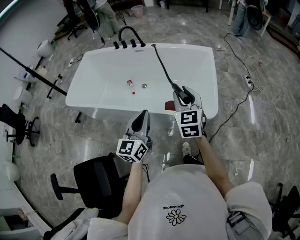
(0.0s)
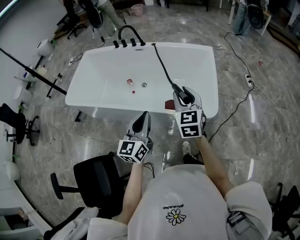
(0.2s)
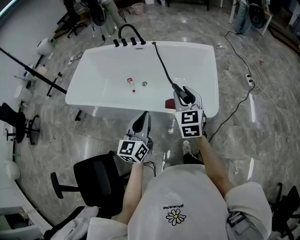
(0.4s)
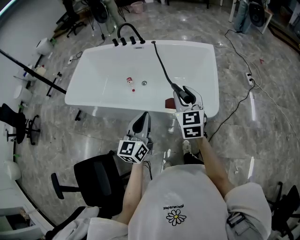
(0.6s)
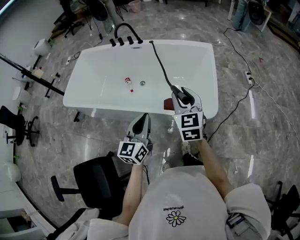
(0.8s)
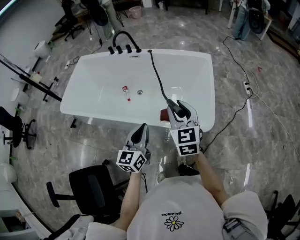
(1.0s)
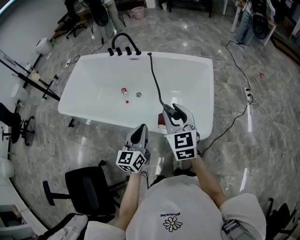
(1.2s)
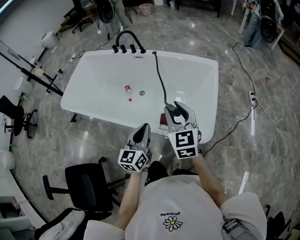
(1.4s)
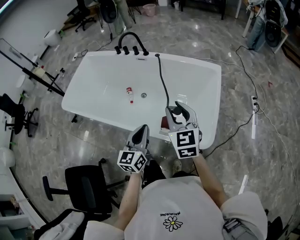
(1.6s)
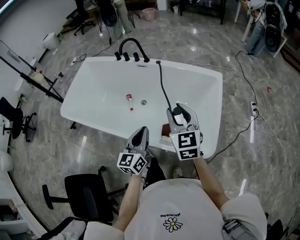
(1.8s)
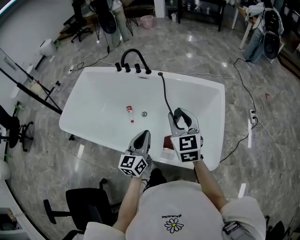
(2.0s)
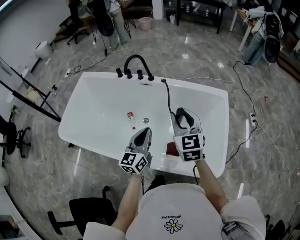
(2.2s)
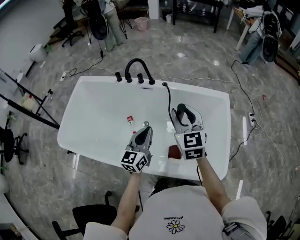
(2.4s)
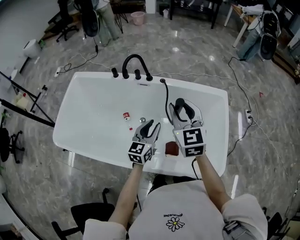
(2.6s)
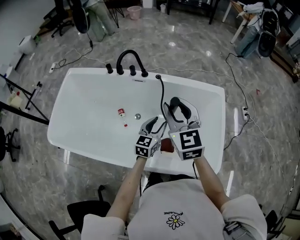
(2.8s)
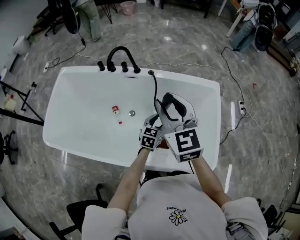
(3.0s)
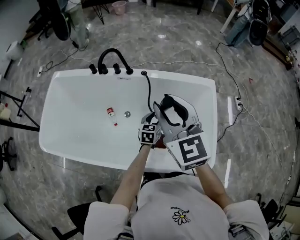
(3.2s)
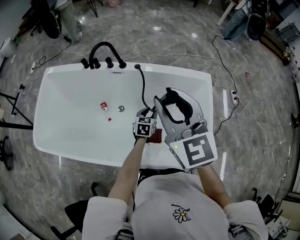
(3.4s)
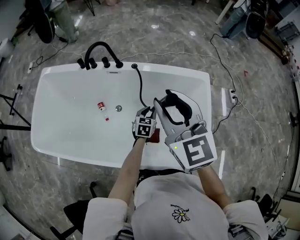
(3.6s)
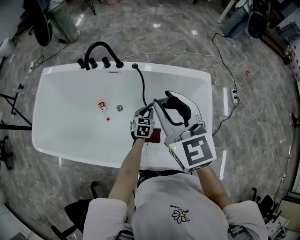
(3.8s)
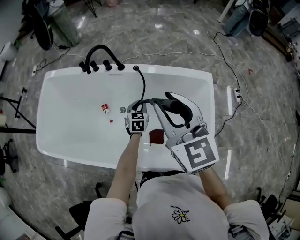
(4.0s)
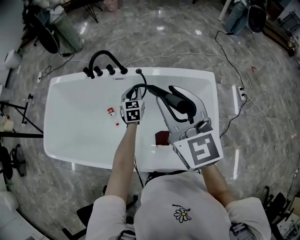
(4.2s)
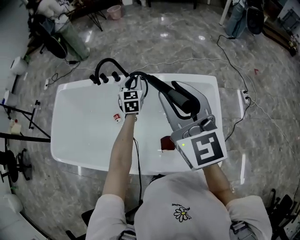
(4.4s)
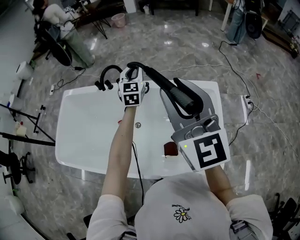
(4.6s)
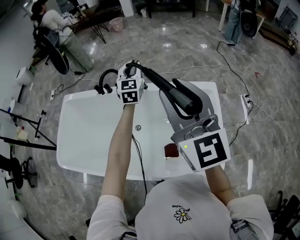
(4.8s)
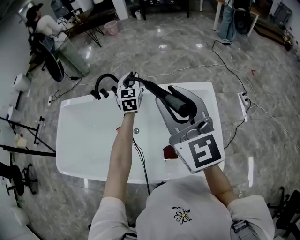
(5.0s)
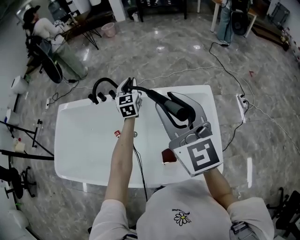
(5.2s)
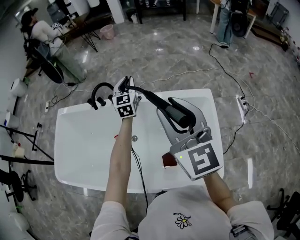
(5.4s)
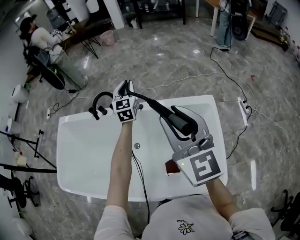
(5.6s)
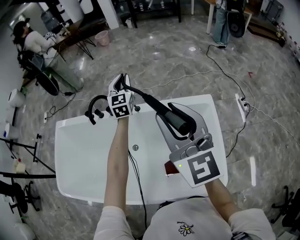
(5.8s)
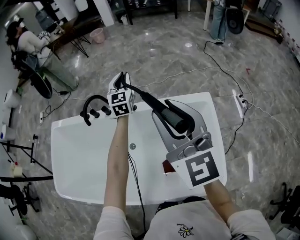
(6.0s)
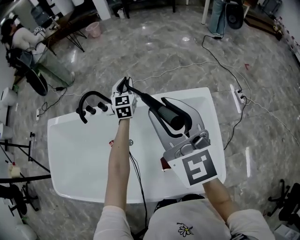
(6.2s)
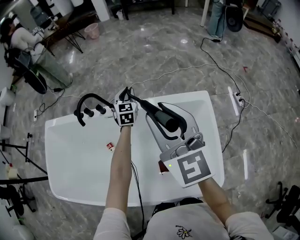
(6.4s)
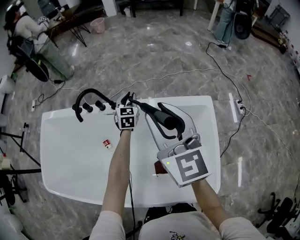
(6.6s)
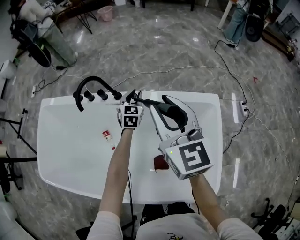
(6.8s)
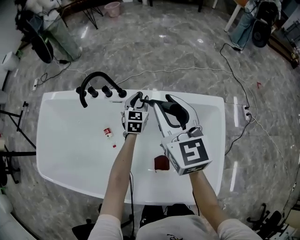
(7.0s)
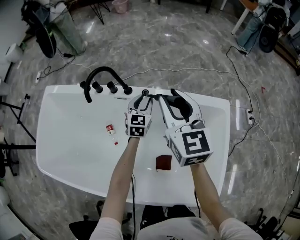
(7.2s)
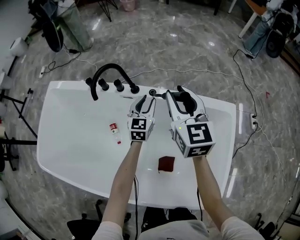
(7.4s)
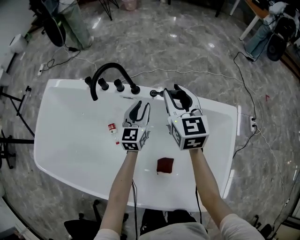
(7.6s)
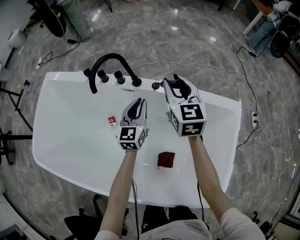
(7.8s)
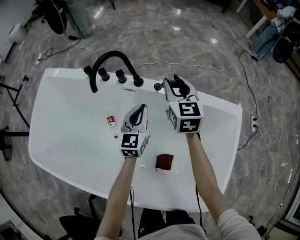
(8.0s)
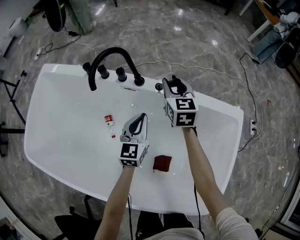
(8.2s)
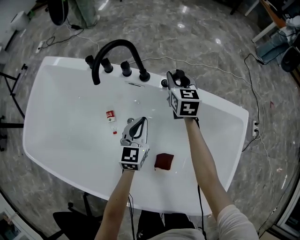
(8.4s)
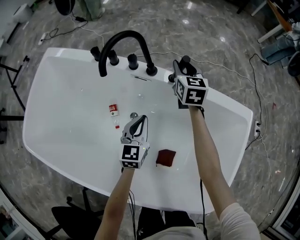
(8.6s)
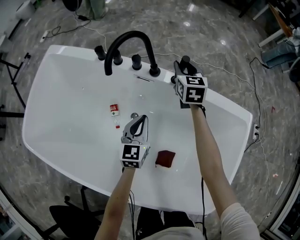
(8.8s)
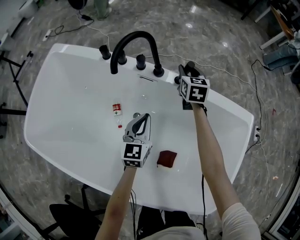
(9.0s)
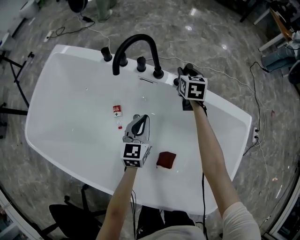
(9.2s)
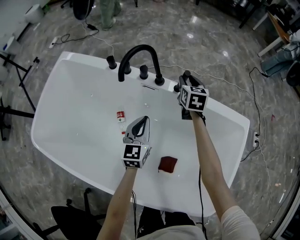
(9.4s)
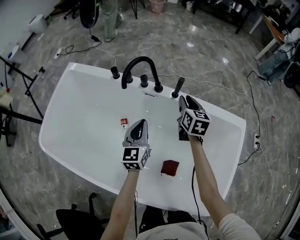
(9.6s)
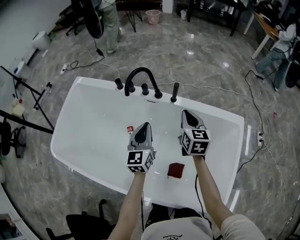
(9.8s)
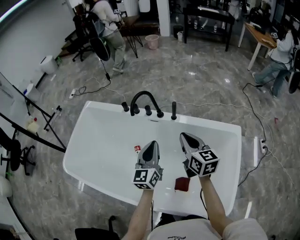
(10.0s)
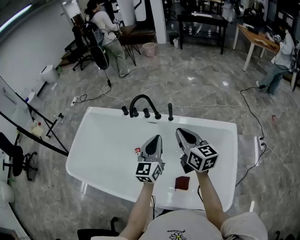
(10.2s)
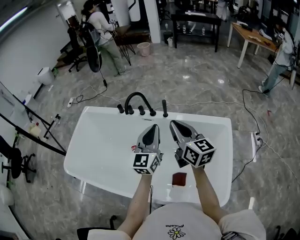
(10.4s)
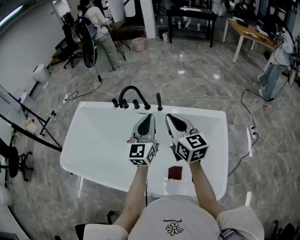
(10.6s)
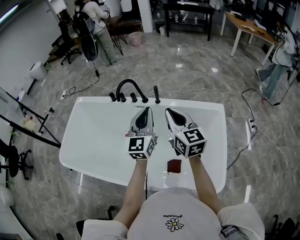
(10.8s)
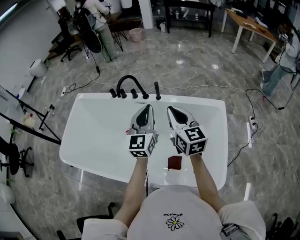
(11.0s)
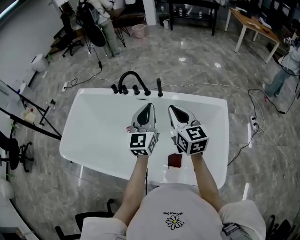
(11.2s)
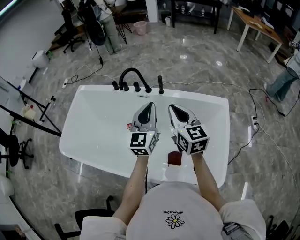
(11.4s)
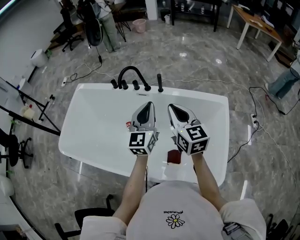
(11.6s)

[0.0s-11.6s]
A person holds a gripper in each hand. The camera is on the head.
0.0s to 1.4s: The right gripper shifts some 10 cm forward. Meanwhile the left gripper moves forward, to the right and downward, roughly 15 cm.
1.4s to 2.8s: The left gripper heads forward, covering approximately 35 cm, swivels some 20 degrees, and opens up, while the right gripper shifts approximately 35 cm forward and to the left.
2.8s to 4.4s: The left gripper goes roughly 25 cm forward, rotates about 30 degrees, and closes. Meanwhile the right gripper is displaced upward and to the right by about 15 cm.
4.4s to 5.8s: The left gripper moves forward and upward, roughly 20 cm, while the right gripper is displaced forward by approximately 5 cm.
5.8s to 7.2s: The right gripper shifts about 25 cm downward and forward. The left gripper is displaced downward by approximately 25 cm.
7.2s to 8.8s: The left gripper shifts roughly 20 cm to the left, backward and downward, and closes; the right gripper travels downward and forward by approximately 30 cm.
8.8s to 10.2s: The left gripper is displaced upward and backward by approximately 35 cm, and rotates approximately 20 degrees. Meanwhile the right gripper travels backward and upward by roughly 50 cm, swivels some 30 degrees, and closes up.

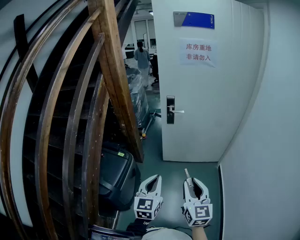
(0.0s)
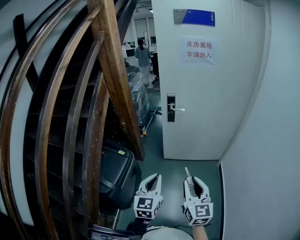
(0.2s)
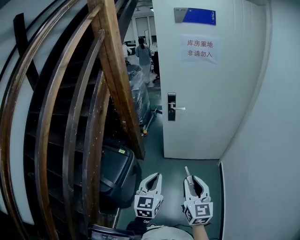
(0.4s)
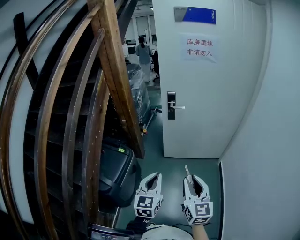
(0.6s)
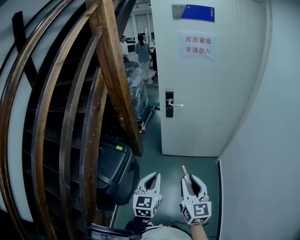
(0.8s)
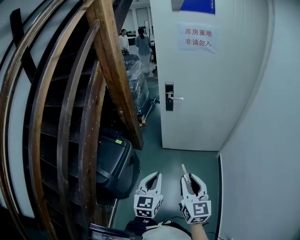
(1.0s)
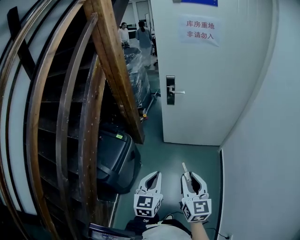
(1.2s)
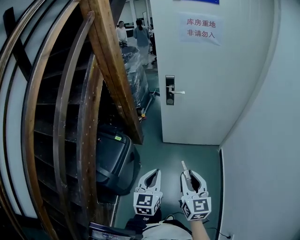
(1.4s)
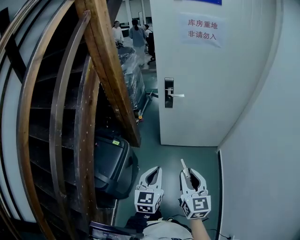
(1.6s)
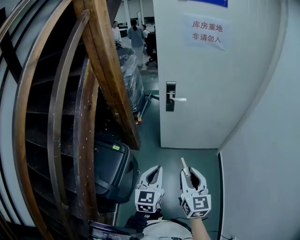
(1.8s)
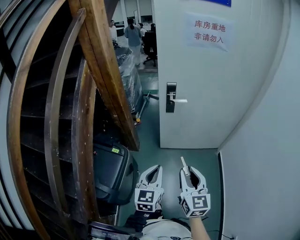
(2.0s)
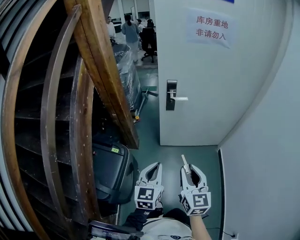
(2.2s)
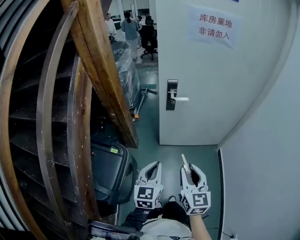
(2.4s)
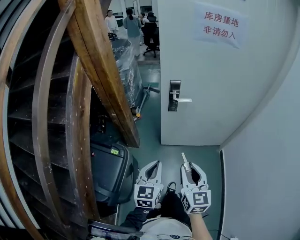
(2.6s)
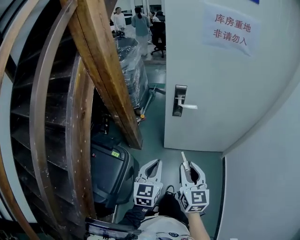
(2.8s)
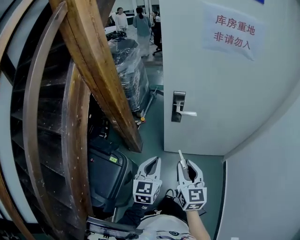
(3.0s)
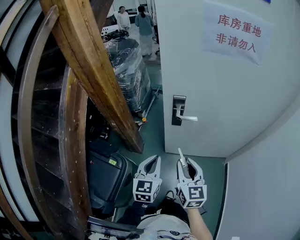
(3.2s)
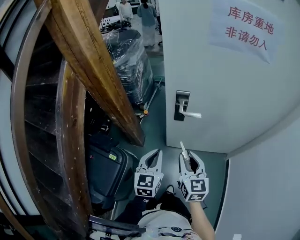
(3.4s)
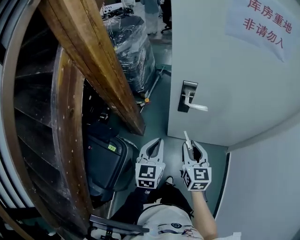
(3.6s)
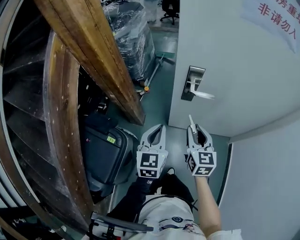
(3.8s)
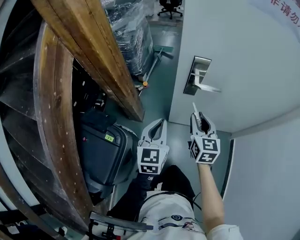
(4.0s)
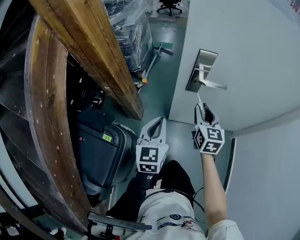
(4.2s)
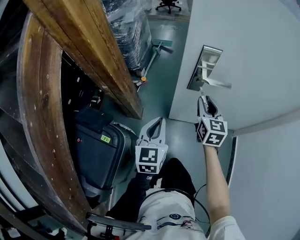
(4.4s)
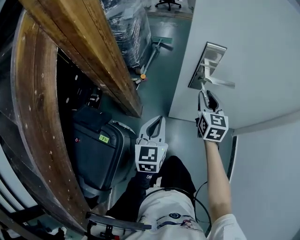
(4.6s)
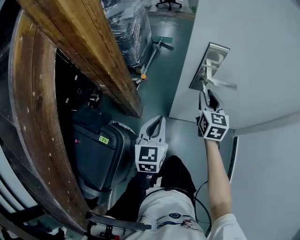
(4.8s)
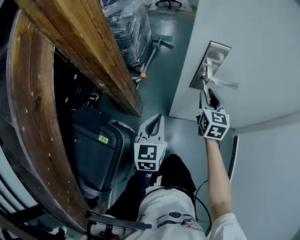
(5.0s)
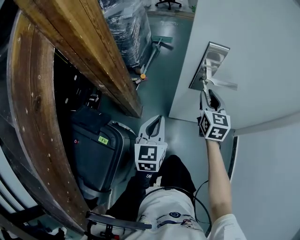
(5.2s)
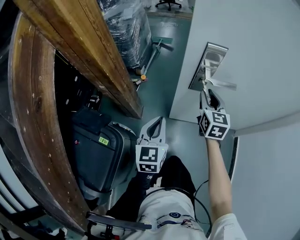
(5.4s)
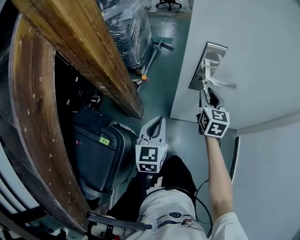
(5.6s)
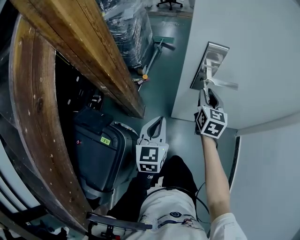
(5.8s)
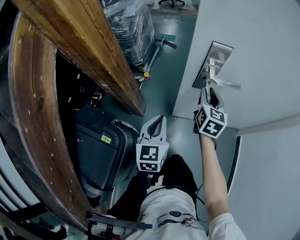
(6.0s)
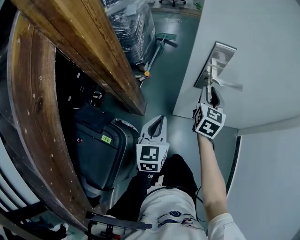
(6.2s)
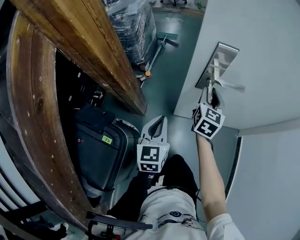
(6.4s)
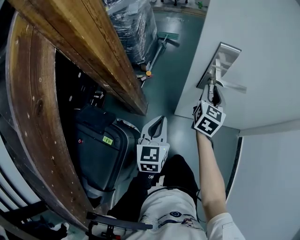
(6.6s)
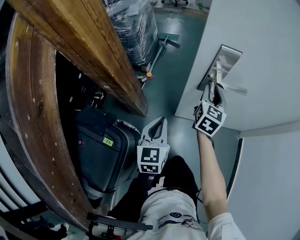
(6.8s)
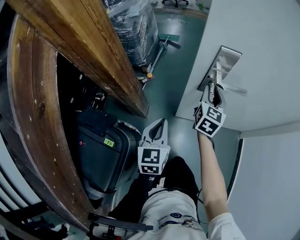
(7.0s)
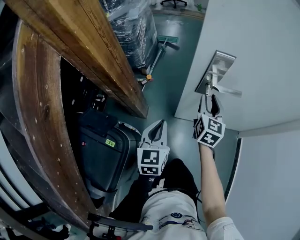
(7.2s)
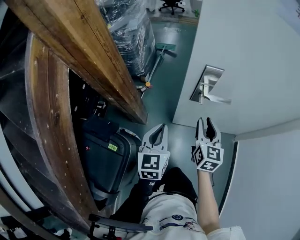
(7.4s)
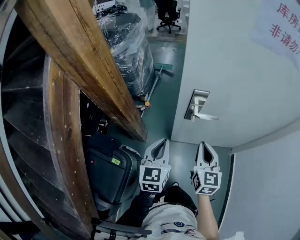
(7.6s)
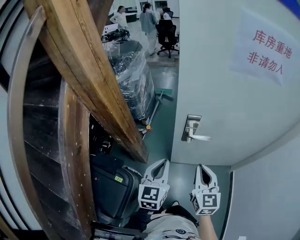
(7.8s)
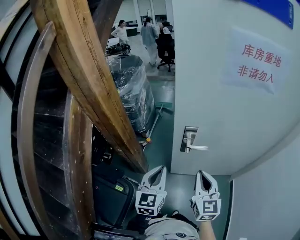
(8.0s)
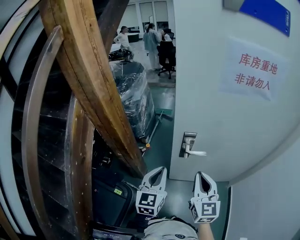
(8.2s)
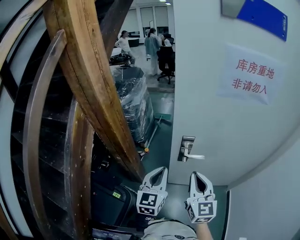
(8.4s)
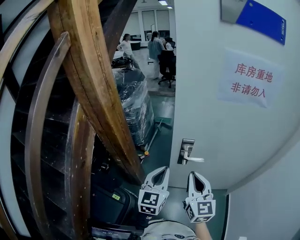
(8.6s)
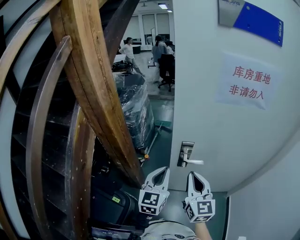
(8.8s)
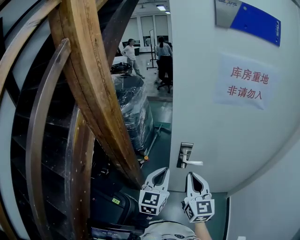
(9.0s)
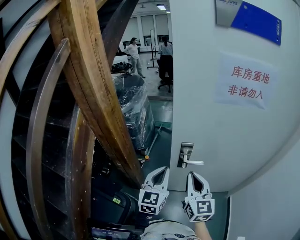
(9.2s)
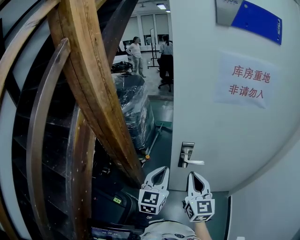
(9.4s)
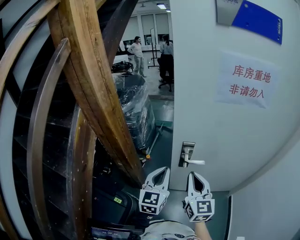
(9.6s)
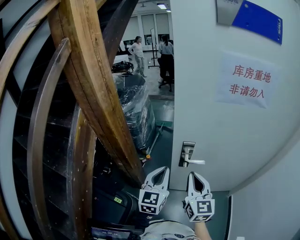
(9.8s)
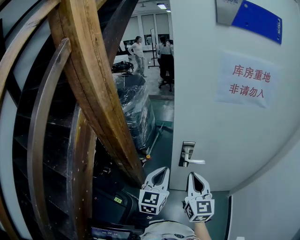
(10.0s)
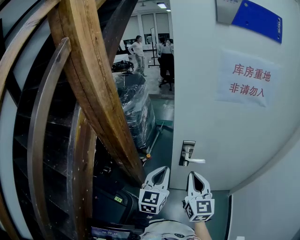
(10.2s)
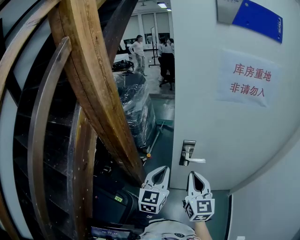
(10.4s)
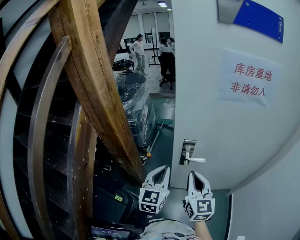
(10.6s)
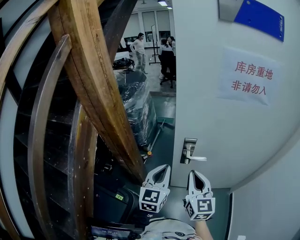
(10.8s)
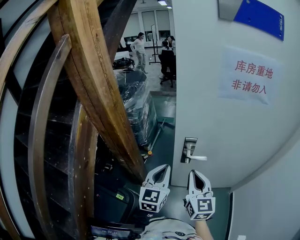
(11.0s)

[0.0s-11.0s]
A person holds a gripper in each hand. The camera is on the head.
0.0s to 1.6s: The two grippers go roughly 5 cm forward.
1.6s to 3.2s: Both grippers travel together forward, approximately 30 cm.
3.2s to 4.8s: The left gripper moves downward and forward, some 20 cm. Meanwhile the right gripper is displaced forward and downward by some 30 cm.
4.8s to 6.2s: The grippers move only a little.
6.2s to 7.8s: The right gripper shifts about 25 cm upward and backward, and closes its fingers. The left gripper goes about 20 cm upward.
7.8s to 9.4s: The grippers both shift upward by about 10 cm.
9.4s to 11.0s: Both grippers stay about where they are.

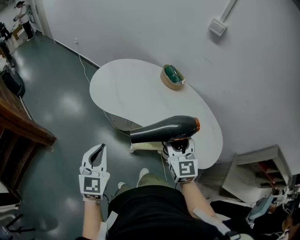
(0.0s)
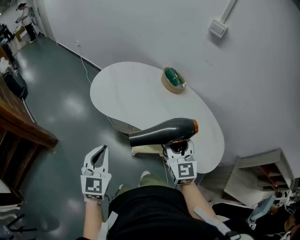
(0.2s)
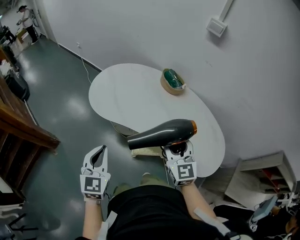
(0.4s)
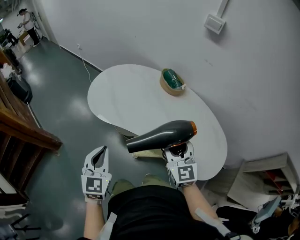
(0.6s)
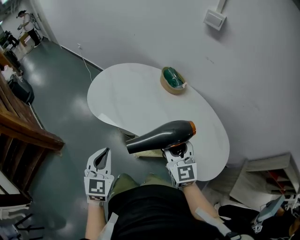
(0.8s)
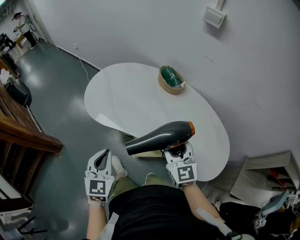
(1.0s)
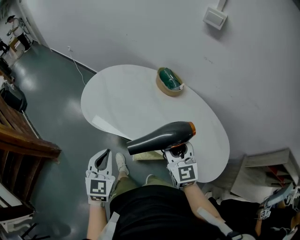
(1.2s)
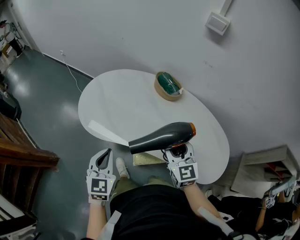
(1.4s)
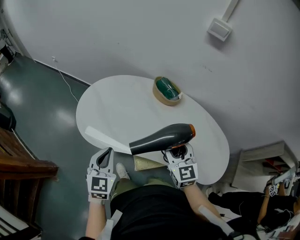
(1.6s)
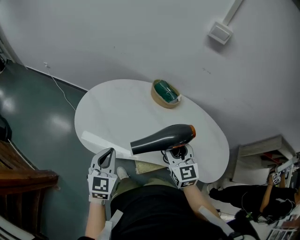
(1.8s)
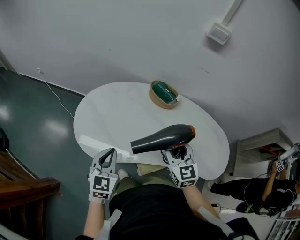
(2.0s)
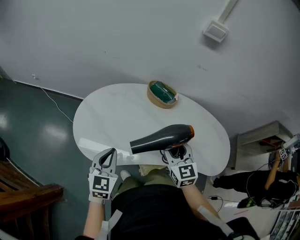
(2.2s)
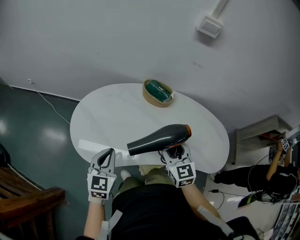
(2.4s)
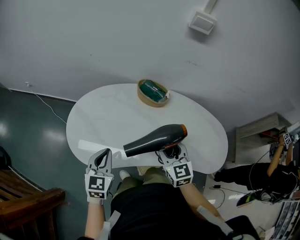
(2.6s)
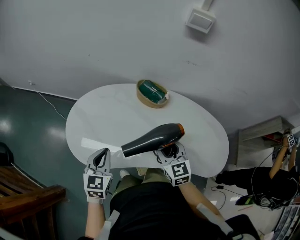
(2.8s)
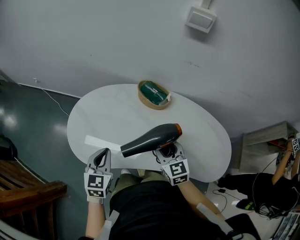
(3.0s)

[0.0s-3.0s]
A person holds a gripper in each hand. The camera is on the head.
0.0s to 1.6s: The two grippers go some 20 cm forward.
1.6s to 3.0s: The left gripper goes some 10 cm forward. The right gripper moves forward and downward, some 10 cm.
